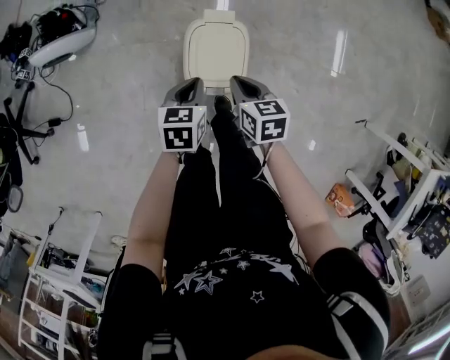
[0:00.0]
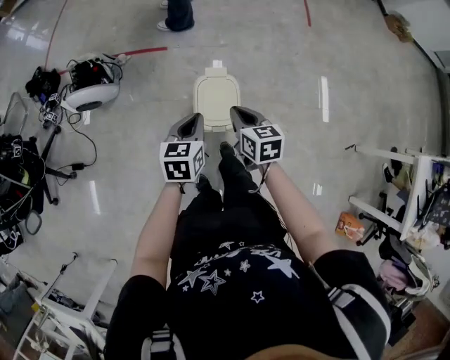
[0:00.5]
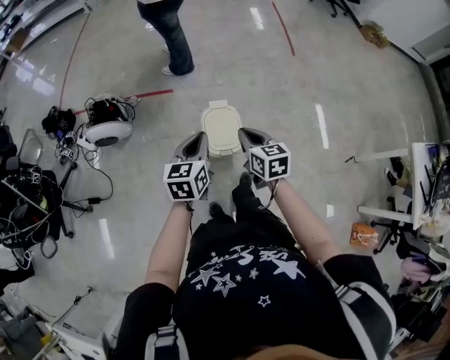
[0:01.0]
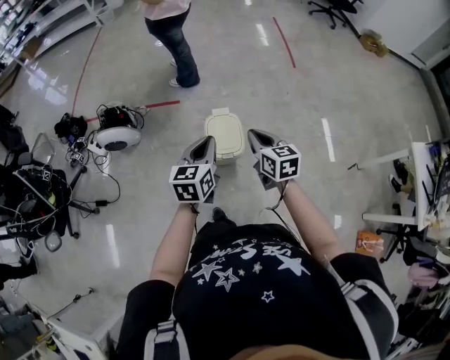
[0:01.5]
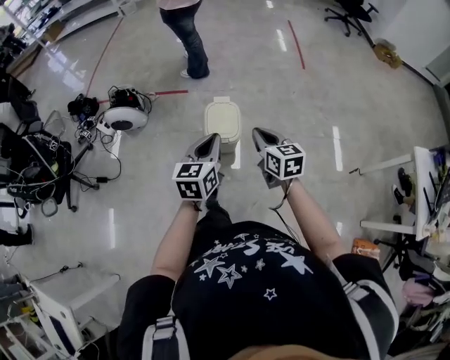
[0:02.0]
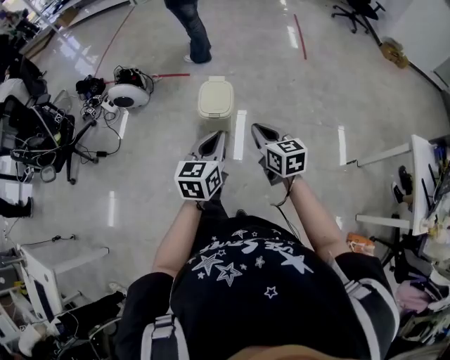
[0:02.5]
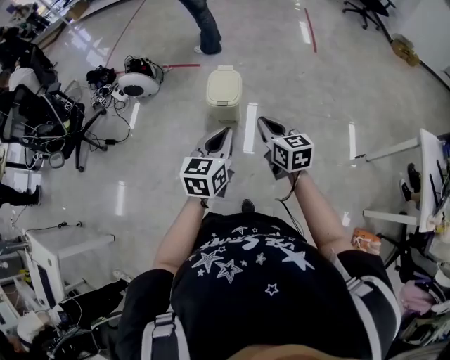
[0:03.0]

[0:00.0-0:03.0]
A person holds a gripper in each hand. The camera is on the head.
0:00.0 to 0:01.5: The two grippers go about 30 cm upward. The right gripper turns by roughly 30 degrees; the left gripper tilts its fingers about 30 degrees upward.
0:01.5 to 0:03.0: The right gripper shifts about 25 cm backward. The left gripper heads backward and to the right, covering roughly 35 cm.

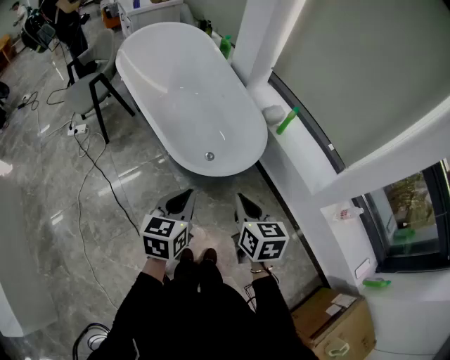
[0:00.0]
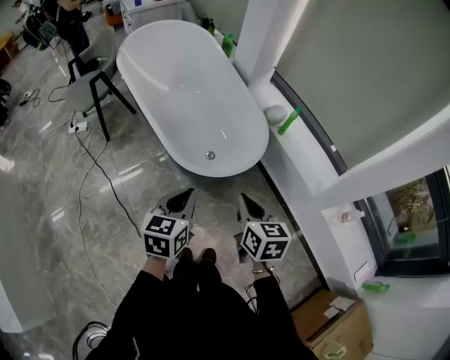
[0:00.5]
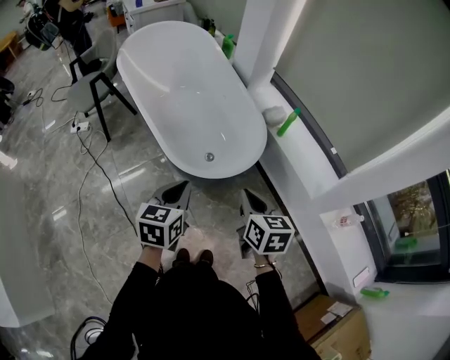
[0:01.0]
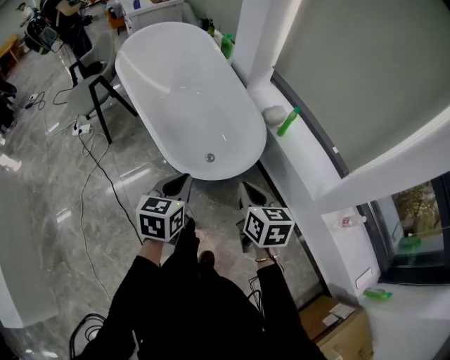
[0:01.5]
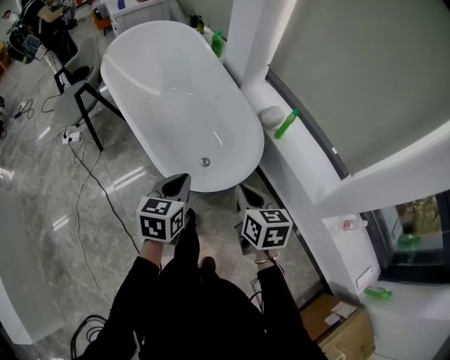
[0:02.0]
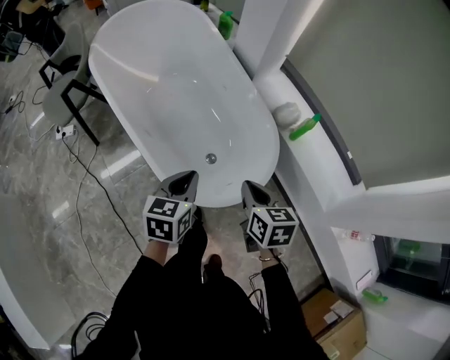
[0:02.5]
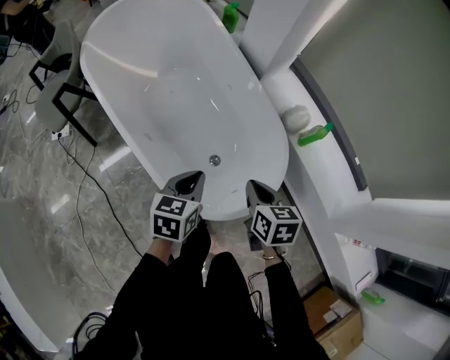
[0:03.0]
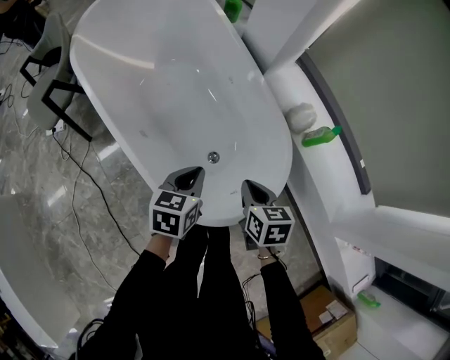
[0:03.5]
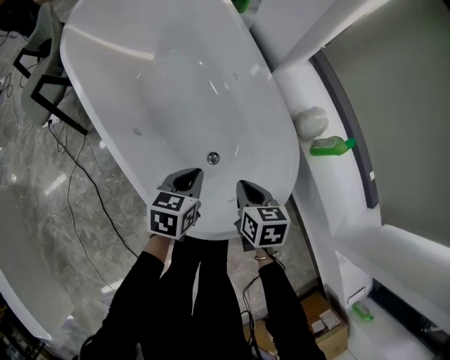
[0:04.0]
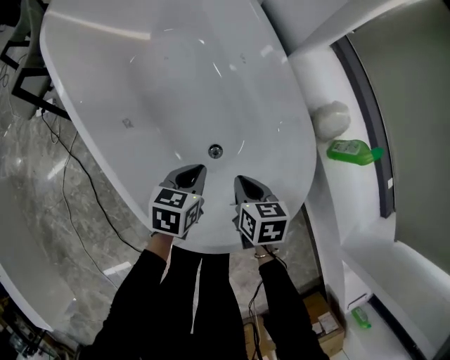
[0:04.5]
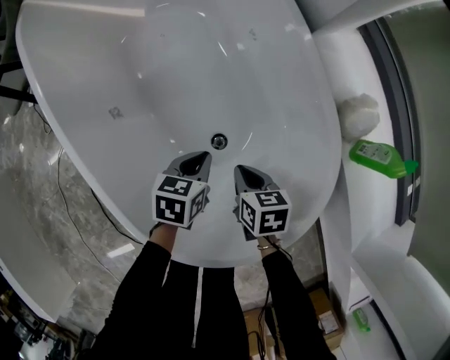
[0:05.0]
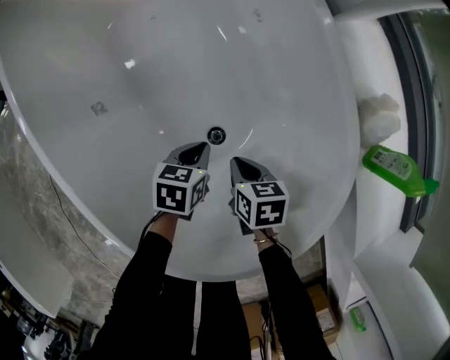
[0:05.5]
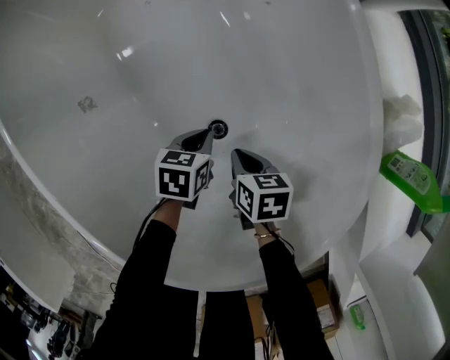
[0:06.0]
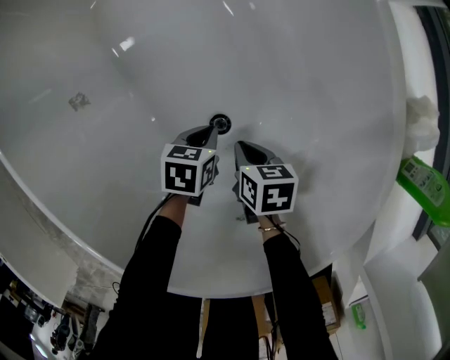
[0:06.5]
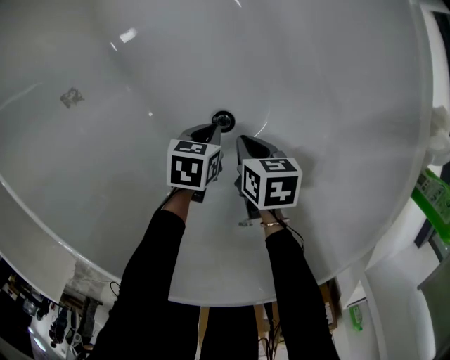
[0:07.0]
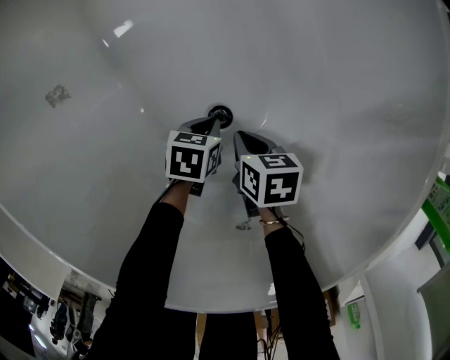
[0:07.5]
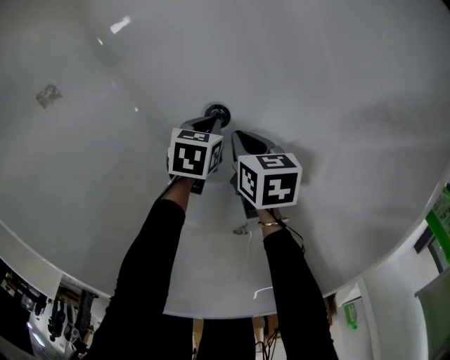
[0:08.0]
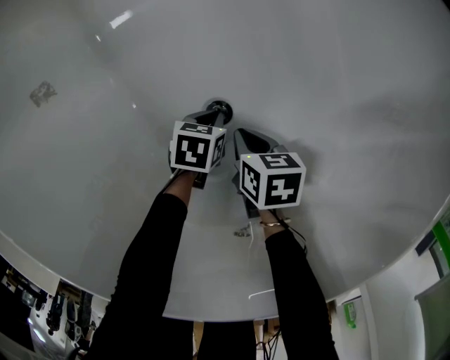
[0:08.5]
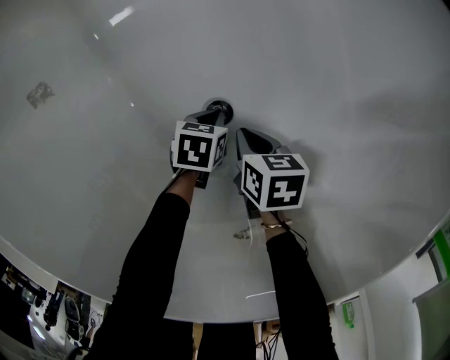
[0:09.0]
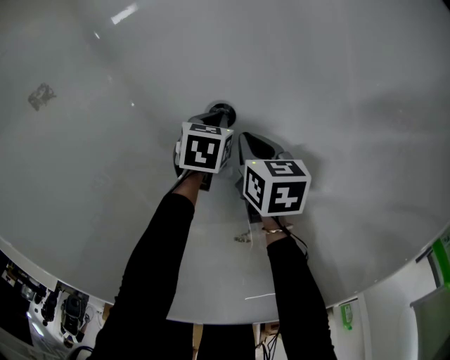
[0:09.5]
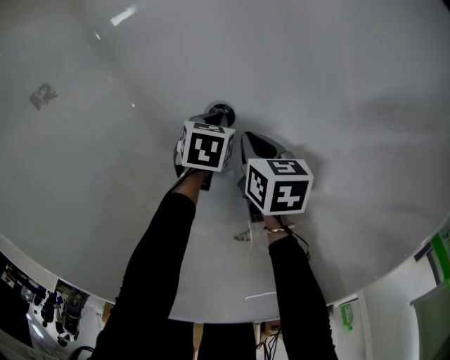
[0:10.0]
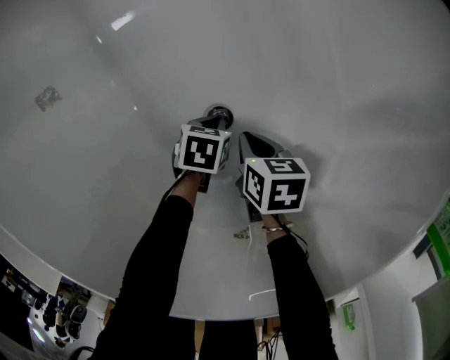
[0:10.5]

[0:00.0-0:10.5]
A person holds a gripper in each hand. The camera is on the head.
0:00.0 to 0:02.0: The grippers both shift forward by roughly 15 cm.
0:02.0 to 0:04.0: Both grippers move forward and downward, some 30 cm.
0:04.0 to 0:06.5: Both grippers travel together downward, about 35 cm. The right gripper turns by some 20 degrees; the left gripper rotates roughly 20 degrees.
0:06.5 to 0:08.5: The left gripper shifts some 15 cm downward; the right gripper goes roughly 10 cm downward.
0:08.5 to 0:10.5: There are only small adjustments of the grippers.

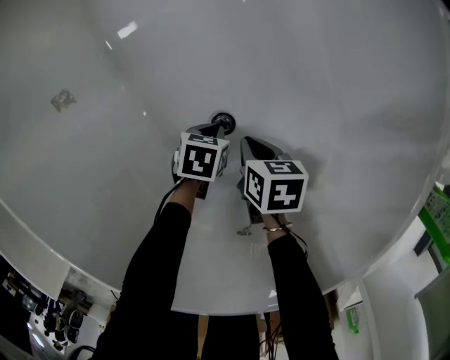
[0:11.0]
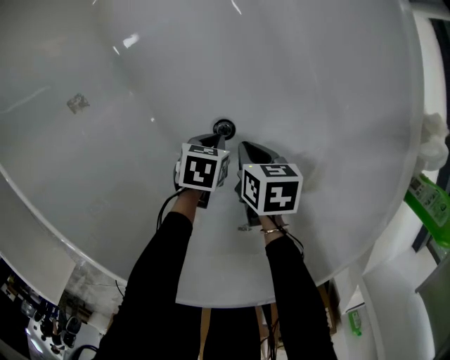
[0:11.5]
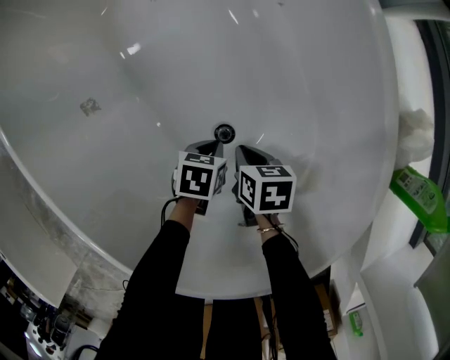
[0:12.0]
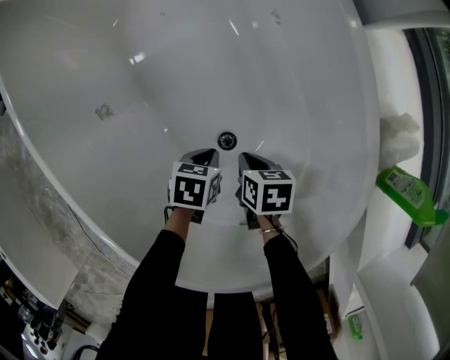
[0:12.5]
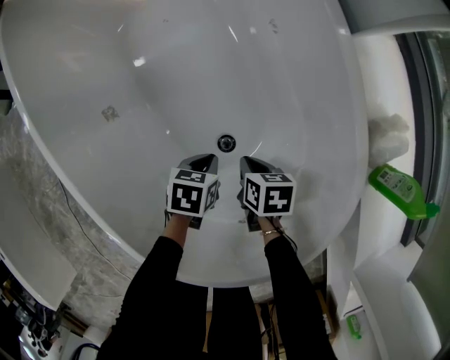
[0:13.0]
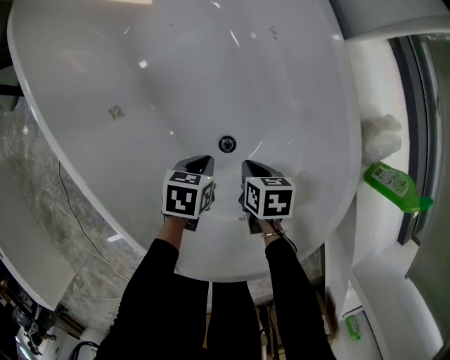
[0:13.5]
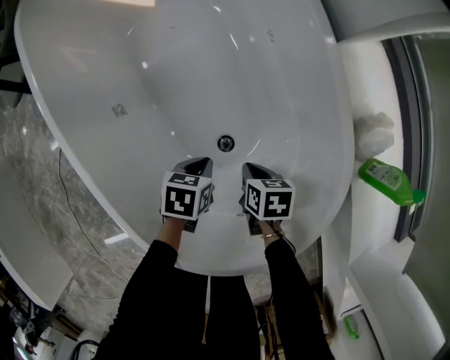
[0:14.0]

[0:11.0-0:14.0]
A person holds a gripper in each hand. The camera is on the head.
0:11.0 to 0:12.5: The right gripper heads upward, covering approximately 10 cm, while the left gripper is displaced upward by approximately 15 cm.
0:12.5 to 0:14.0: The grippers both shift upward by roughly 5 cm.

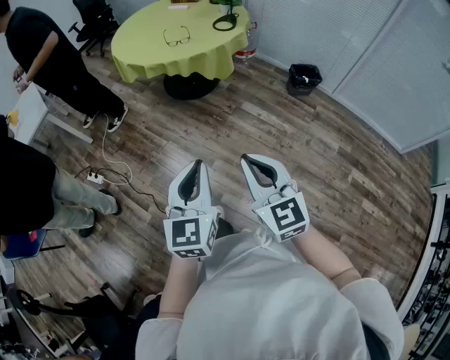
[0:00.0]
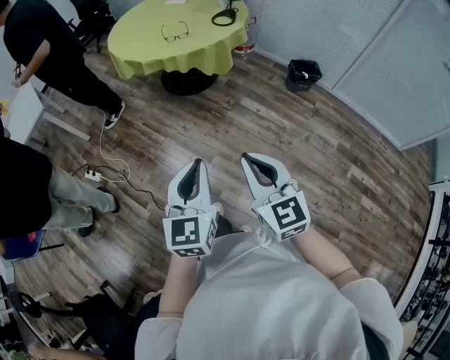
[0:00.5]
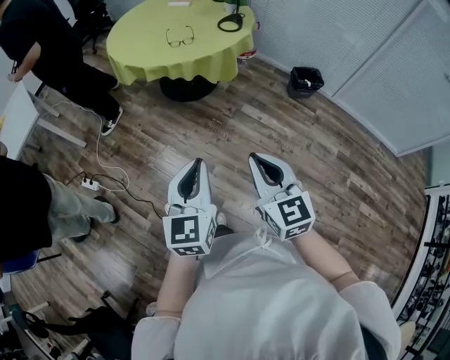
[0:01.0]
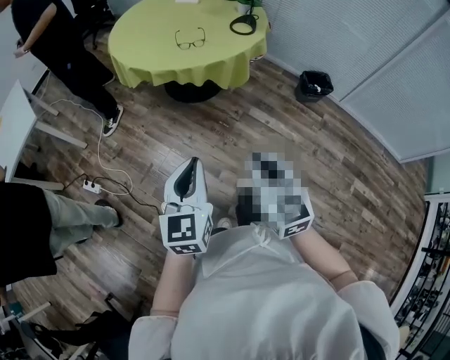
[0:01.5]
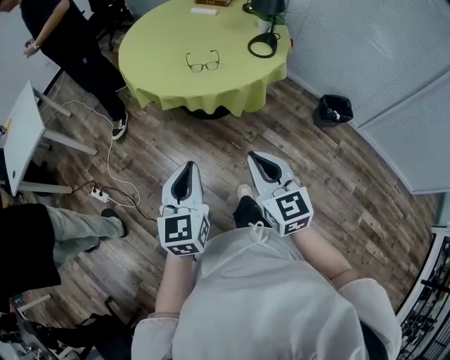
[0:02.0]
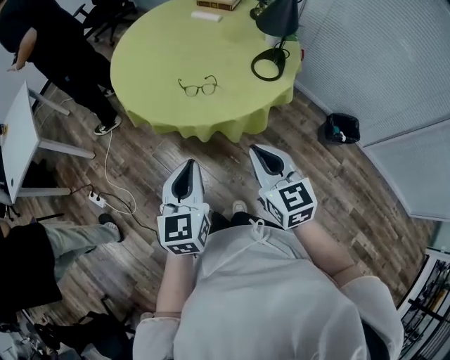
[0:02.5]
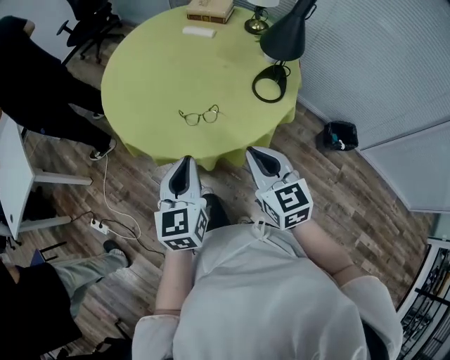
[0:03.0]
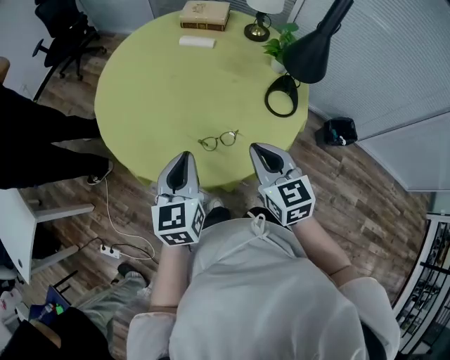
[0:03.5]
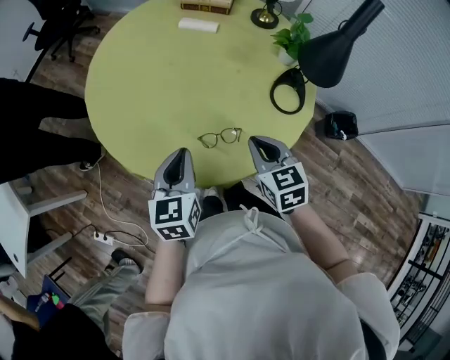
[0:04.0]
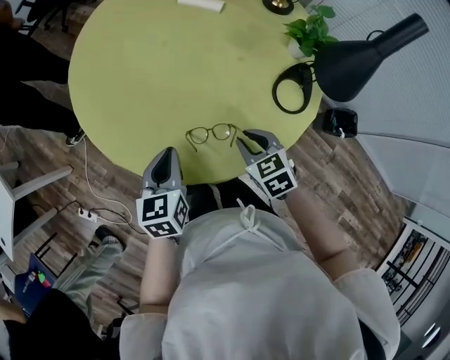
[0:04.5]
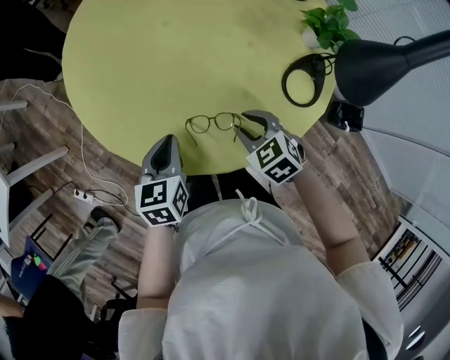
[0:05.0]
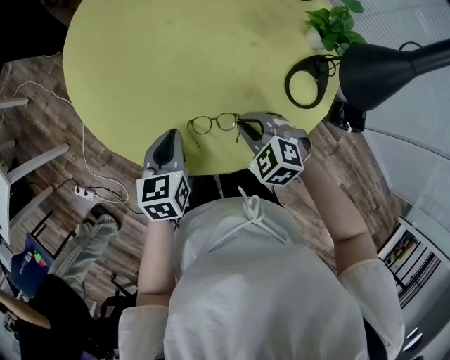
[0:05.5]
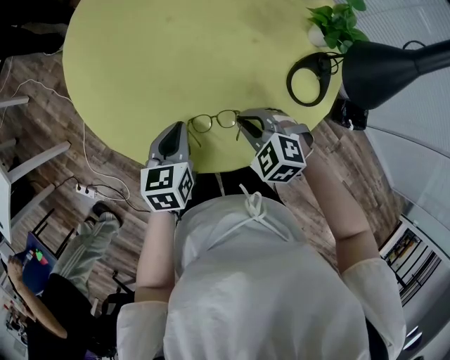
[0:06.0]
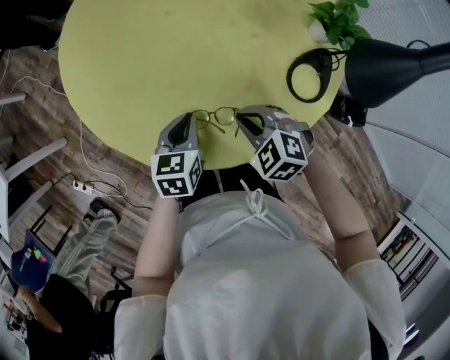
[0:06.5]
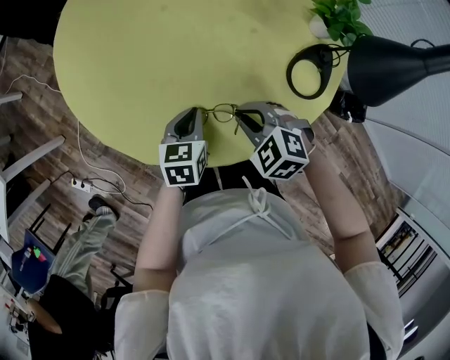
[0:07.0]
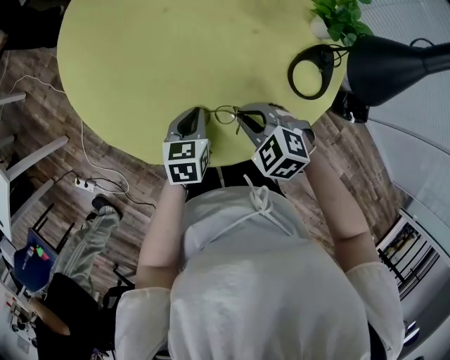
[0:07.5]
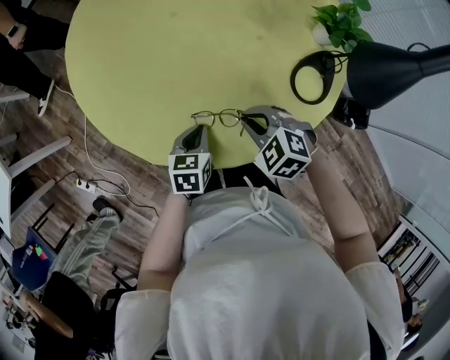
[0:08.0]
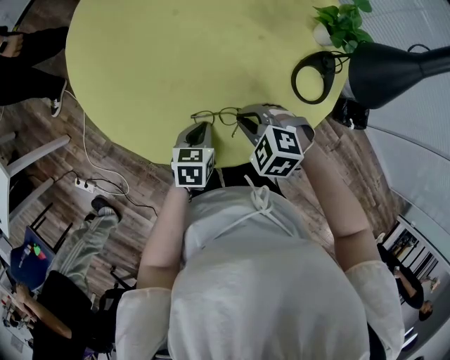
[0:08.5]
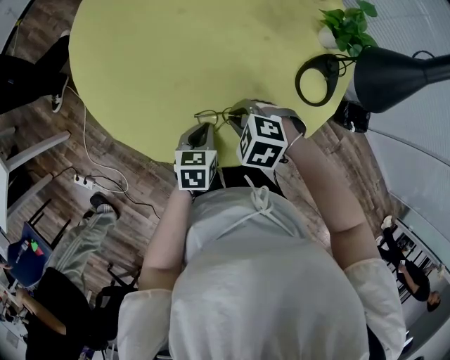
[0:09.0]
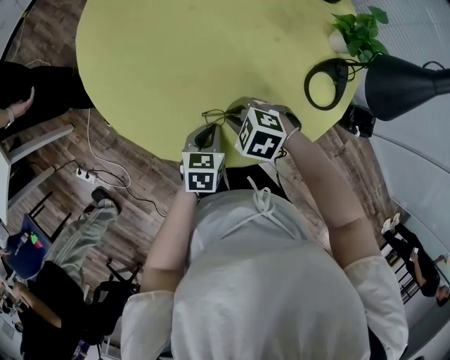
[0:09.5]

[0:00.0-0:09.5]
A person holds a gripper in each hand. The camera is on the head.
0:00.0 to 0:02.0: Both grippers travel together forward, approximately 40 cm.
0:02.0 to 0:04.0: The pair of grippers is taken forward, approximately 50 cm. The right gripper changes its angle by roughly 20 degrees.
0:04.0 to 0:05.5: The right gripper travels downward and forward by about 15 cm, rolls counterclockwise, seen from behind, by about 50 degrees, and opens, then closes again, while the left gripper shifts roughly 10 cm downward.
0:05.5 to 0:07.5: The left gripper shifts approximately 10 cm downward and to the right.
0:07.5 to 0:09.5: The left gripper moves about 5 cm; the right gripper shifts about 5 cm to the left.
